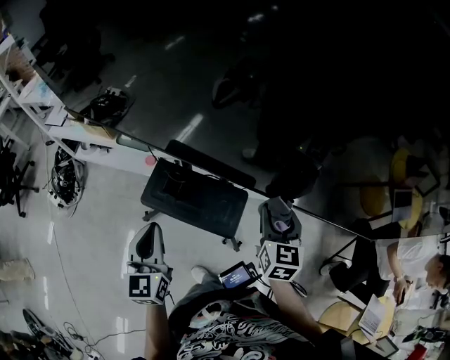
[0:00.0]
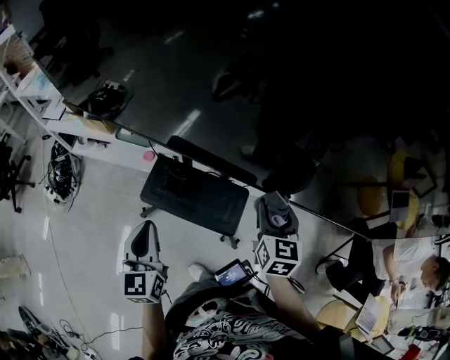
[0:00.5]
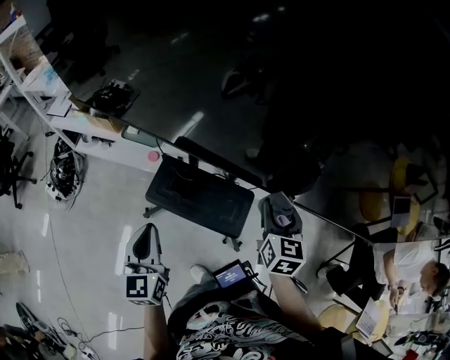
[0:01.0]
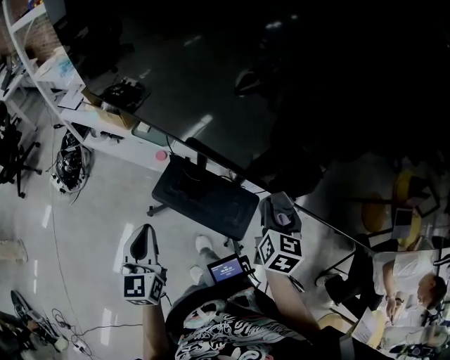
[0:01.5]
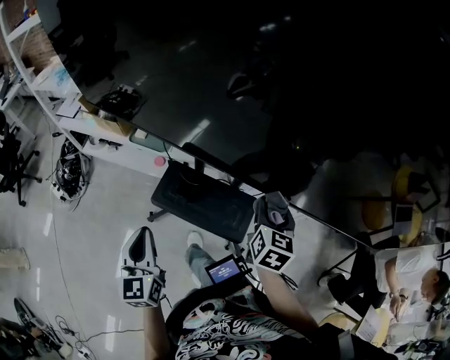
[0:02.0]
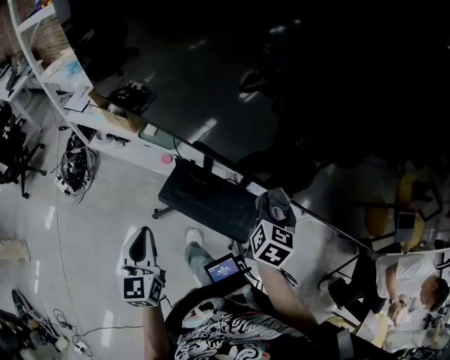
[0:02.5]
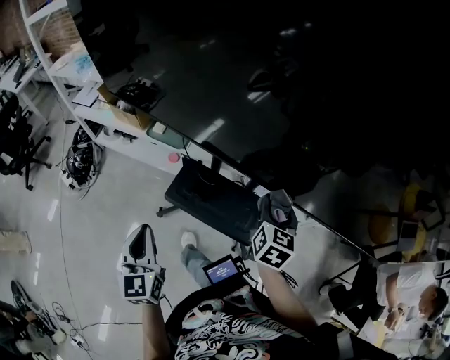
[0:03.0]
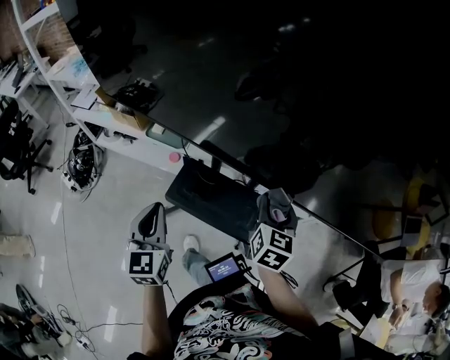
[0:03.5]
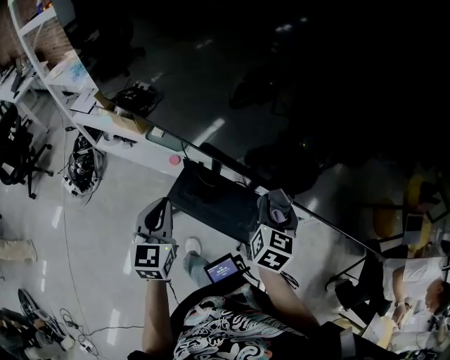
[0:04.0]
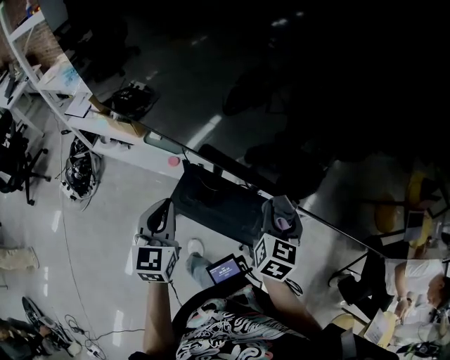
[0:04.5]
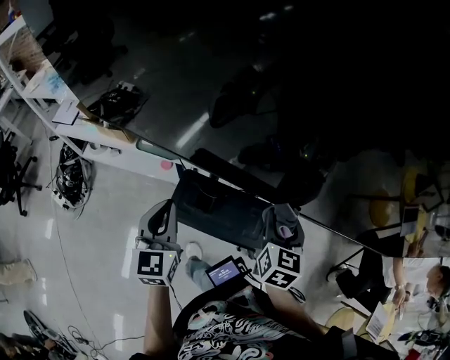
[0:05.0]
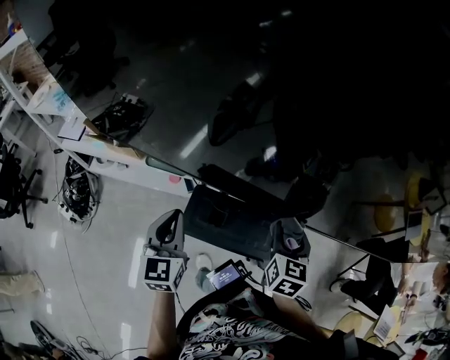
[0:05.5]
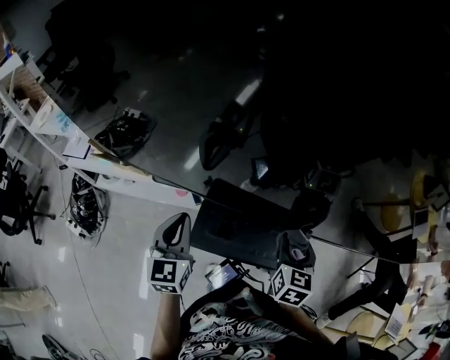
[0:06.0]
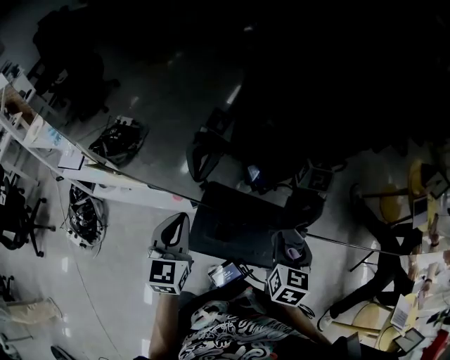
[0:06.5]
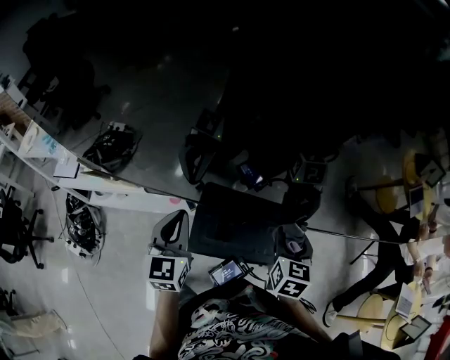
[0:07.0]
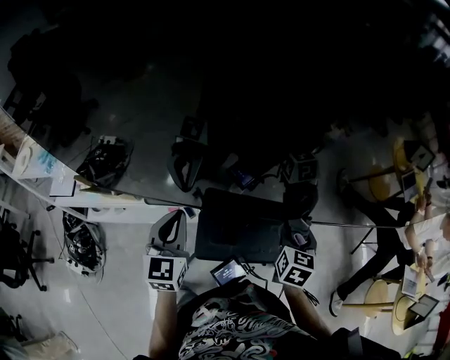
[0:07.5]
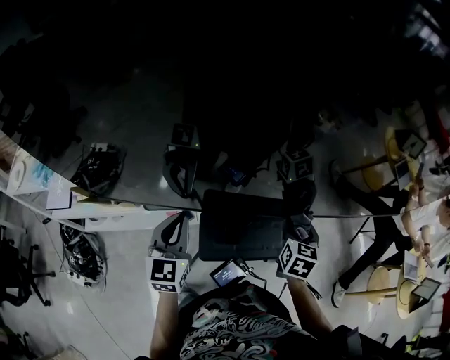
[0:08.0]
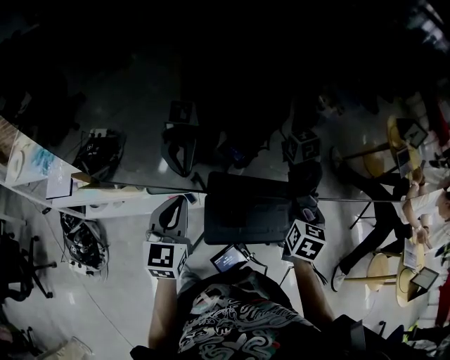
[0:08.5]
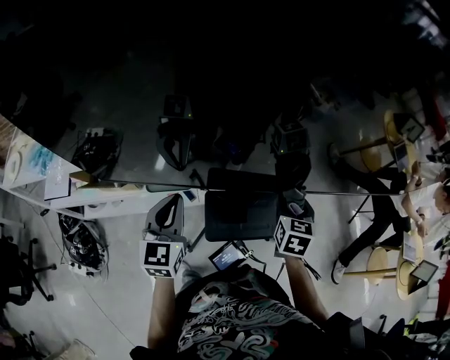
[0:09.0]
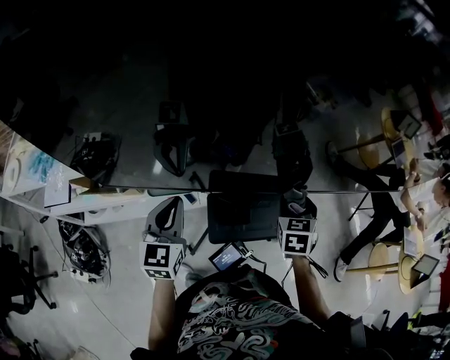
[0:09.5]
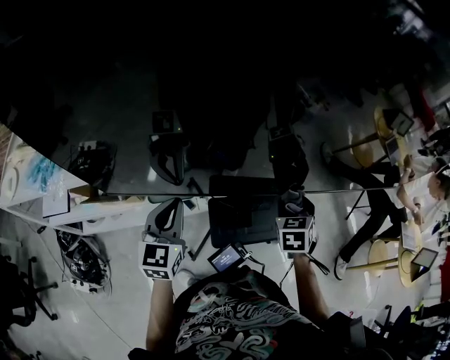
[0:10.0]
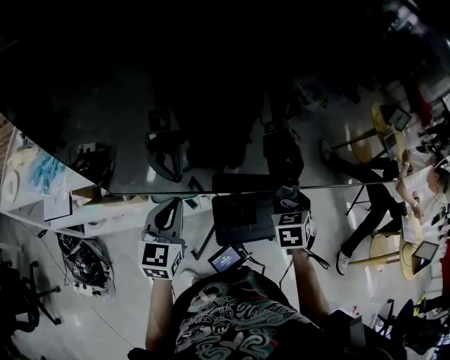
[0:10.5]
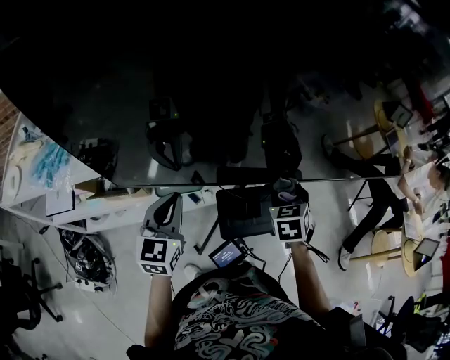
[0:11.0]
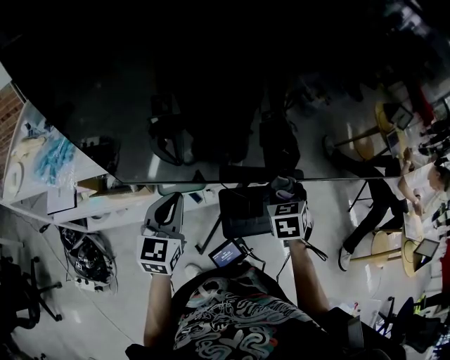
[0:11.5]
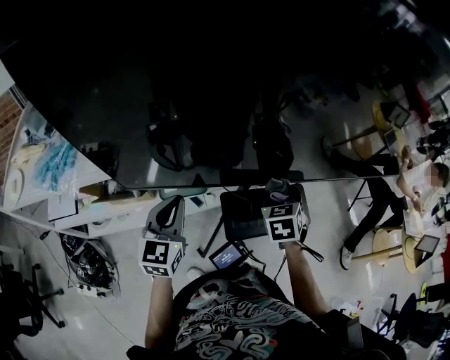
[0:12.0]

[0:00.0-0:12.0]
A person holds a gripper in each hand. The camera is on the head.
0:00.0 to 0:02.0: The two grippers go approximately 5 cm to the left.
0:02.0 to 0:04.0: The left gripper shifts about 10 cm forward; the right gripper goes roughly 5 cm to the left.
0:04.0 to 0:06.0: The left gripper travels forward and to the left by about 15 cm; the right gripper goes about 5 cm to the left.
0:06.0 to 0:08.0: The left gripper shifts roughly 5 cm to the left.
0:08.0 to 0:10.0: The two grippers go approximately 10 cm to the left. The right gripper turns by about 30 degrees.
0:10.0 to 0:12.0: The right gripper moves to the left, some 10 cm; the left gripper travels to the left by about 5 cm.

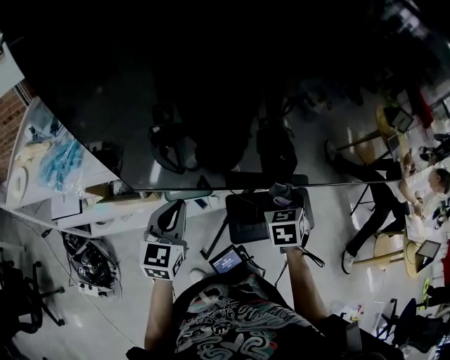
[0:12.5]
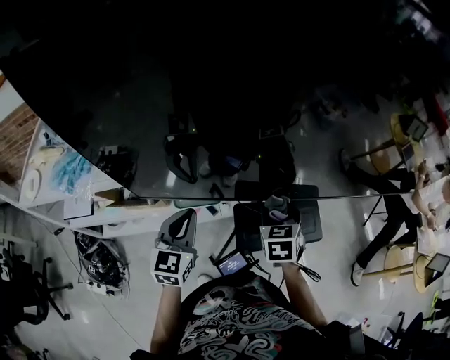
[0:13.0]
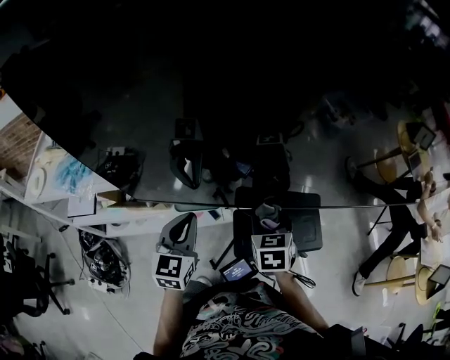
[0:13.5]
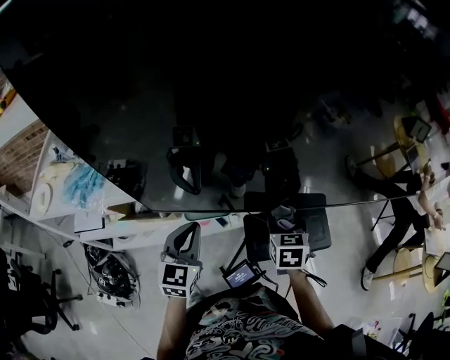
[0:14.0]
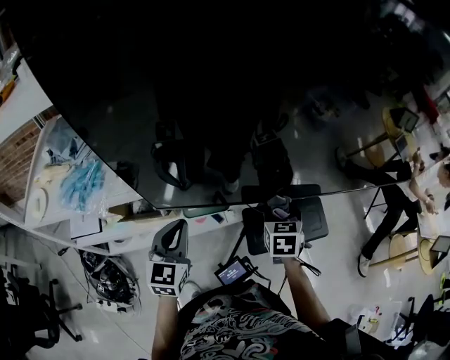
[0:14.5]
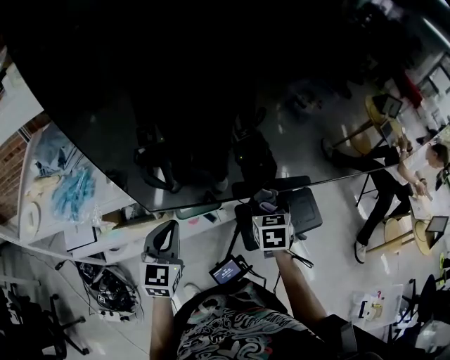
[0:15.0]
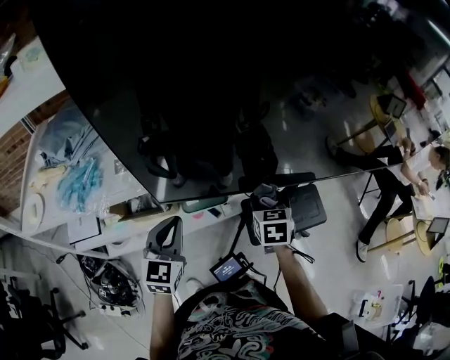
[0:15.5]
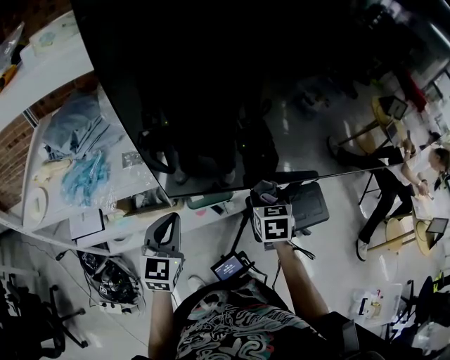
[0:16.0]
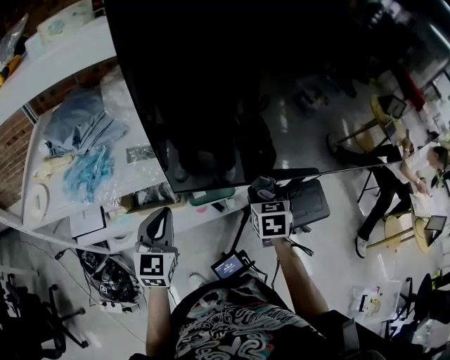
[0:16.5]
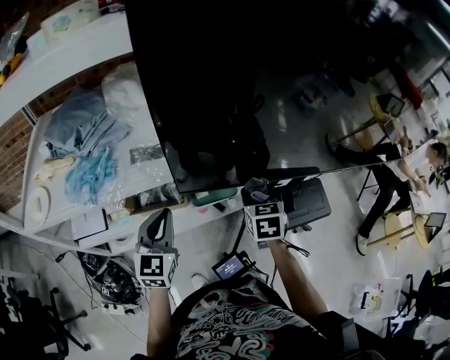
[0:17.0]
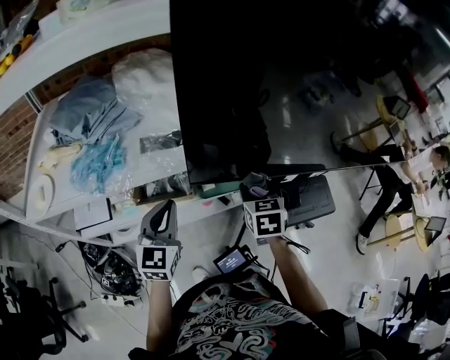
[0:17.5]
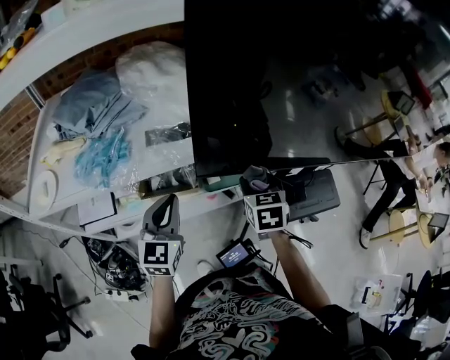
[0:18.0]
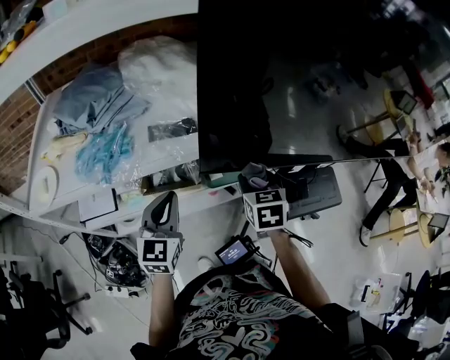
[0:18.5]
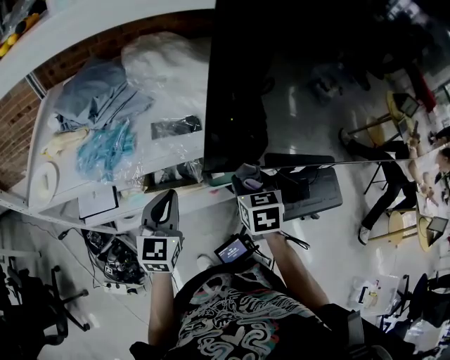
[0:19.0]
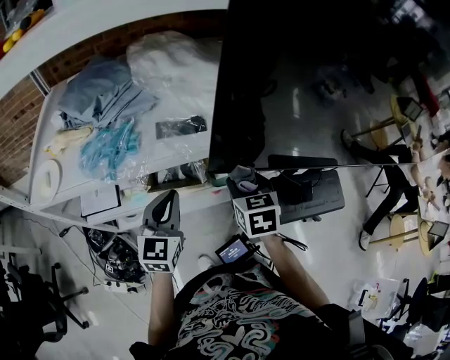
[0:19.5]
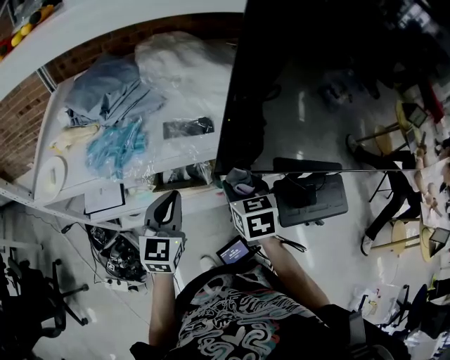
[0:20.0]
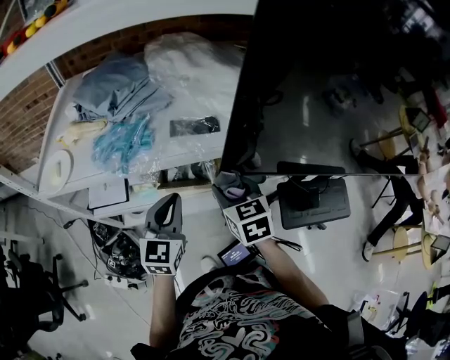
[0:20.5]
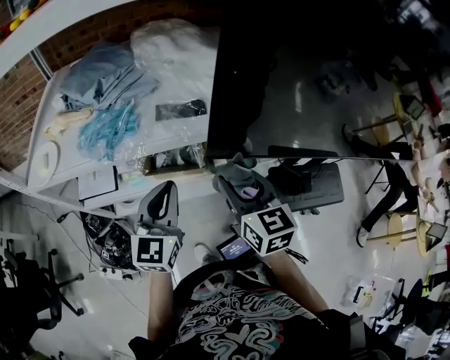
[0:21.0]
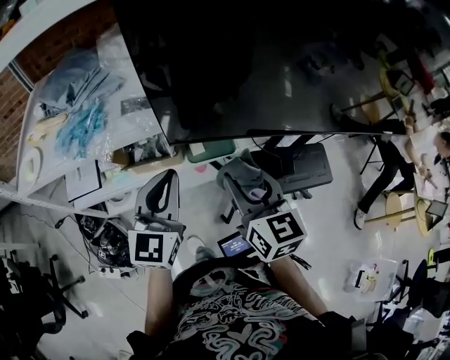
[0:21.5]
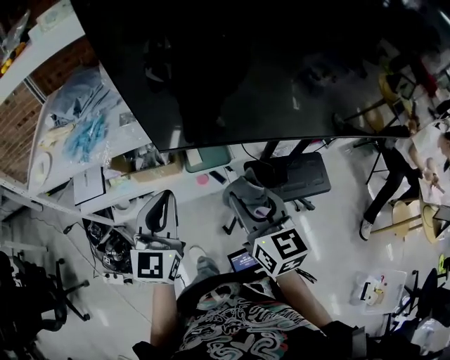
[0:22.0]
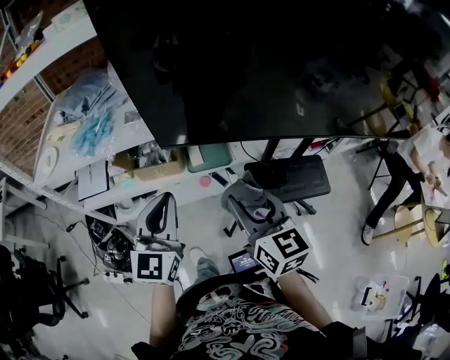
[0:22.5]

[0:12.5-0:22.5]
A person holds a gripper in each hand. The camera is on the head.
0:12.5 to 0:14.5: The grippers both shift to the left by about 5 cm.
0:14.5 to 0:16.5: Both grippers travel together to the left, roughly 10 cm.
0:16.5 to 0:18.5: The left gripper heads to the left, covering about 5 cm; the right gripper is displaced to the left by roughly 10 cm.
0:18.5 to 0:20.5: The right gripper moves to the left, some 15 cm, and turns by approximately 20 degrees.
0:20.5 to 0:22.5: The right gripper shifts about 30 cm backward, to the right and upward, and rotates roughly 20 degrees. Meanwhile the left gripper shifts roughly 25 cm to the right, backward and upward.

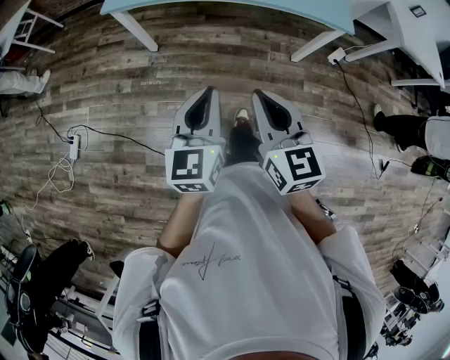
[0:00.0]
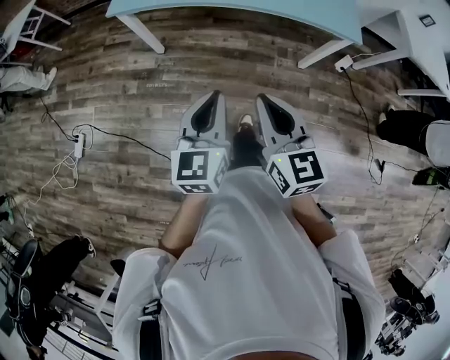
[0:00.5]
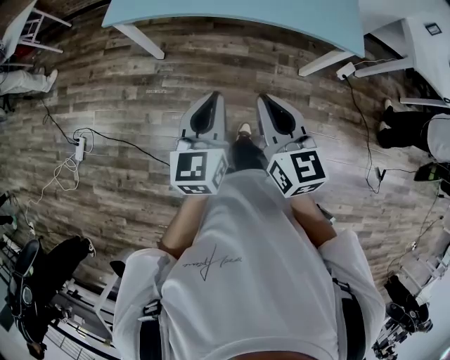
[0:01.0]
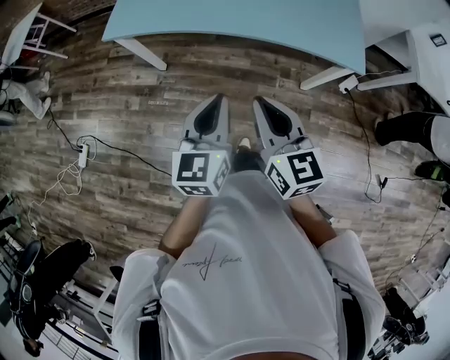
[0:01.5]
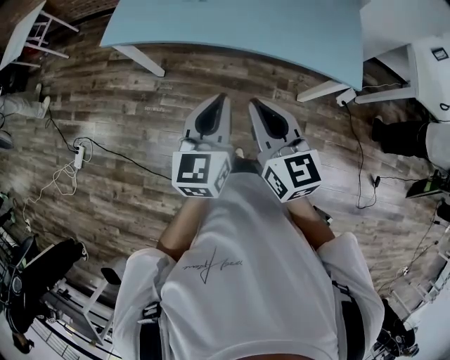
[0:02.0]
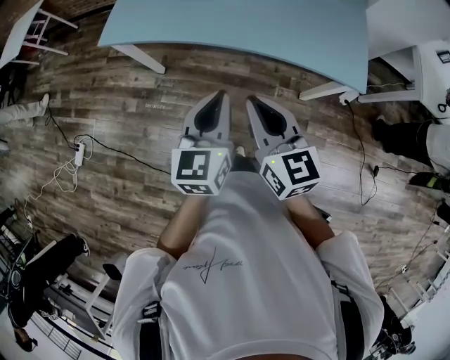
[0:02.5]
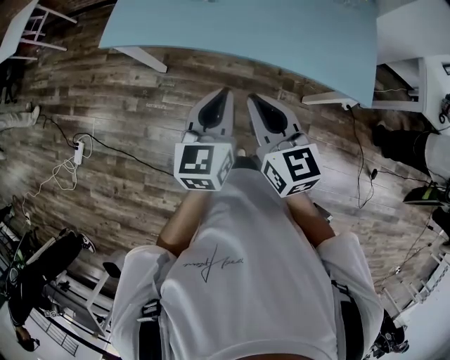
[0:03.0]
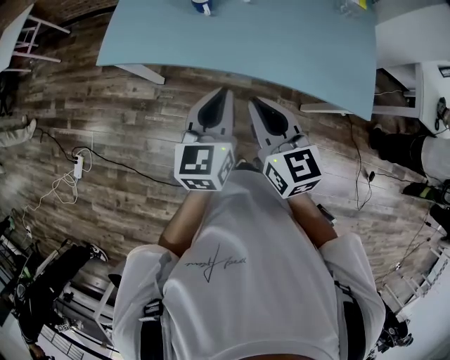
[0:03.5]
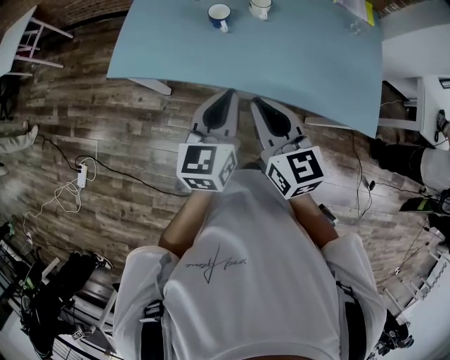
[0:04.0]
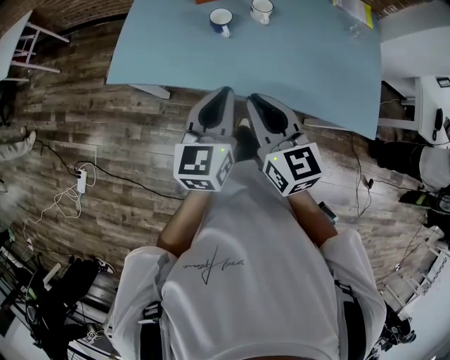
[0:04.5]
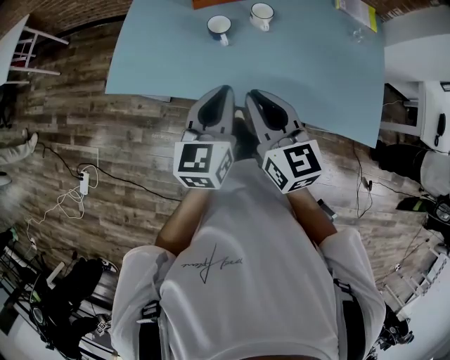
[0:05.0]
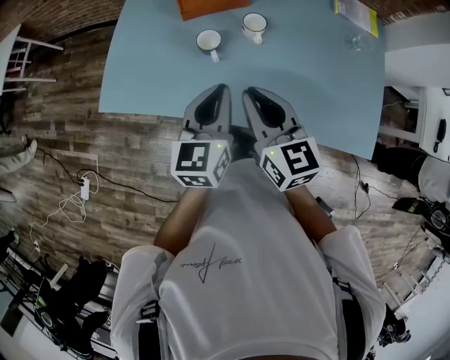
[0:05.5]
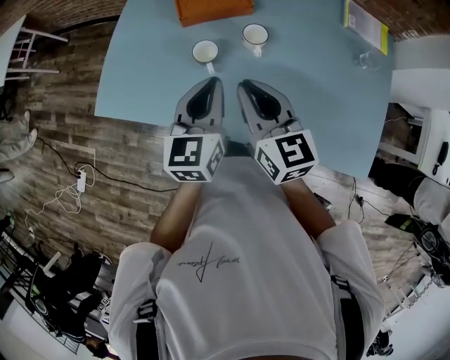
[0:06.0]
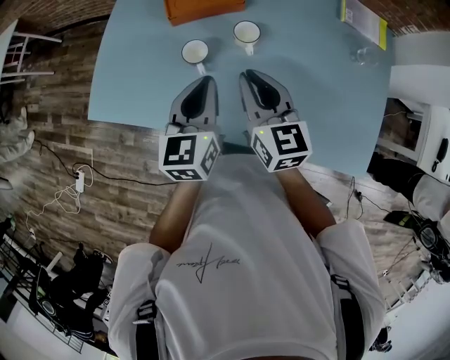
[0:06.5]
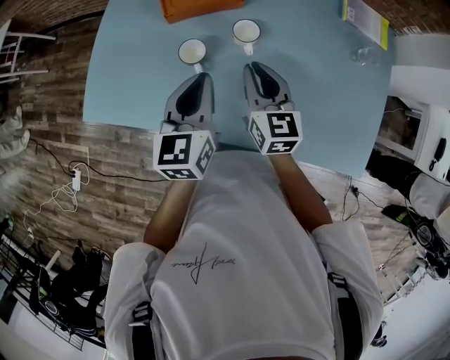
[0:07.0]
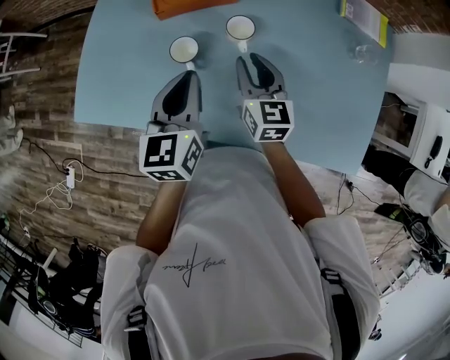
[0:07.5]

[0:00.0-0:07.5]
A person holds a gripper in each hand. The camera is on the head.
0:00.0 to 0:02.0: Both grippers travel together forward and to the right, about 20 cm.
0:02.0 to 0:04.0: The left gripper heads forward, covering some 20 cm, while the right gripper travels forward and to the left by roughly 20 cm.
0:04.0 to 0:05.5: The two grippers go some 15 cm forward.
0:05.5 to 0:07.5: The right gripper travels forward, downward and to the right by some 20 cm. Meanwhile the left gripper moves forward, approximately 10 cm.
